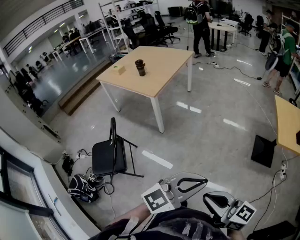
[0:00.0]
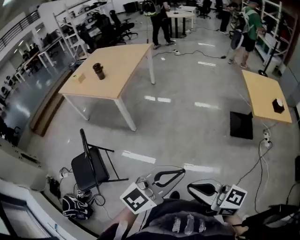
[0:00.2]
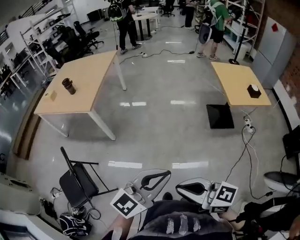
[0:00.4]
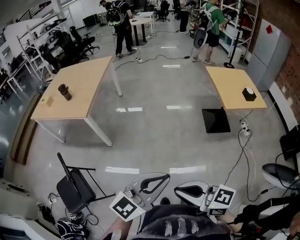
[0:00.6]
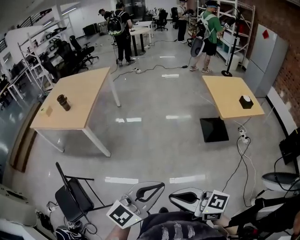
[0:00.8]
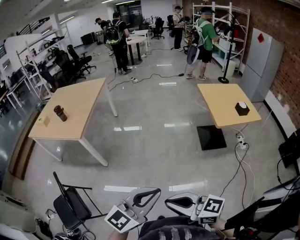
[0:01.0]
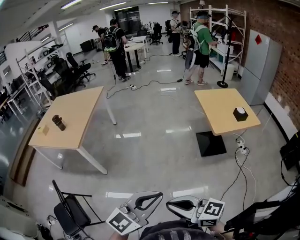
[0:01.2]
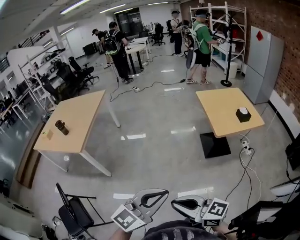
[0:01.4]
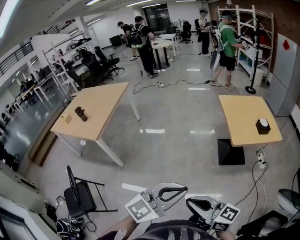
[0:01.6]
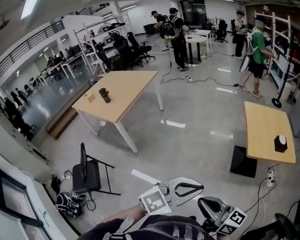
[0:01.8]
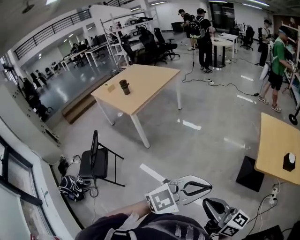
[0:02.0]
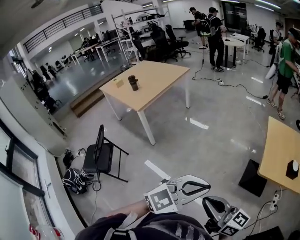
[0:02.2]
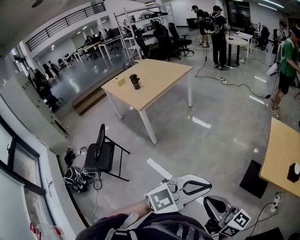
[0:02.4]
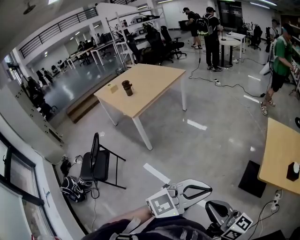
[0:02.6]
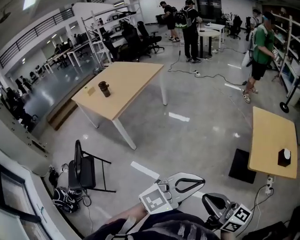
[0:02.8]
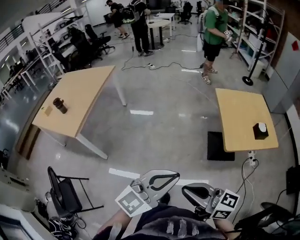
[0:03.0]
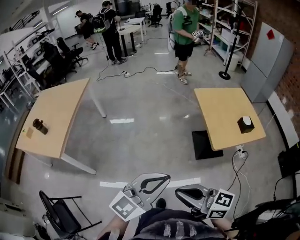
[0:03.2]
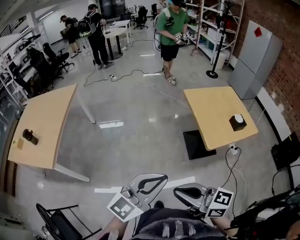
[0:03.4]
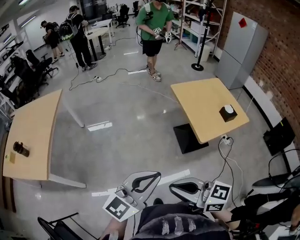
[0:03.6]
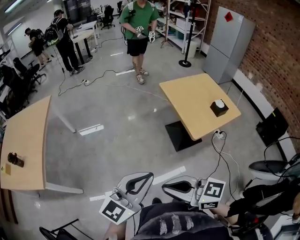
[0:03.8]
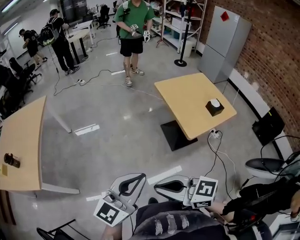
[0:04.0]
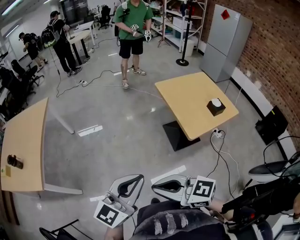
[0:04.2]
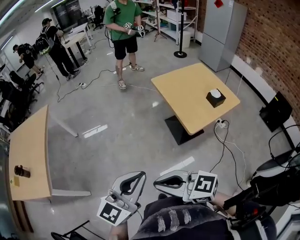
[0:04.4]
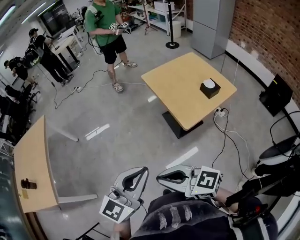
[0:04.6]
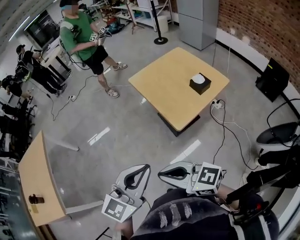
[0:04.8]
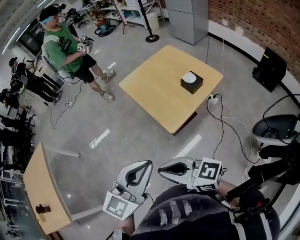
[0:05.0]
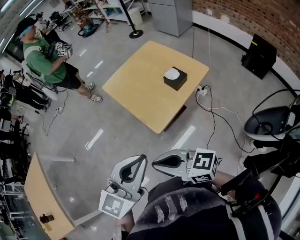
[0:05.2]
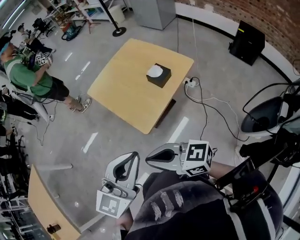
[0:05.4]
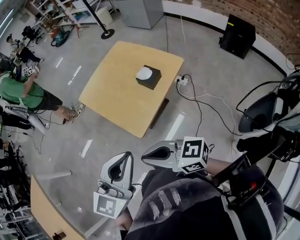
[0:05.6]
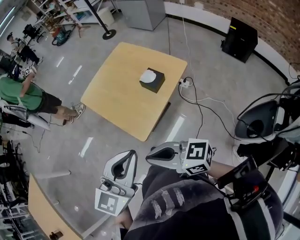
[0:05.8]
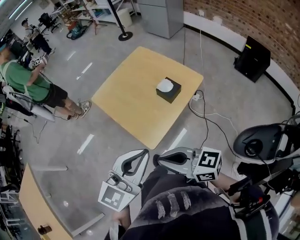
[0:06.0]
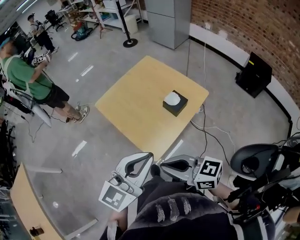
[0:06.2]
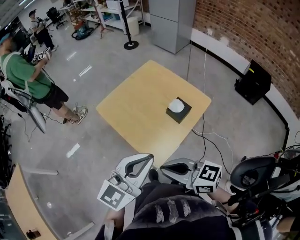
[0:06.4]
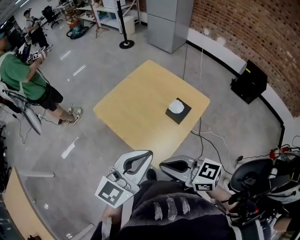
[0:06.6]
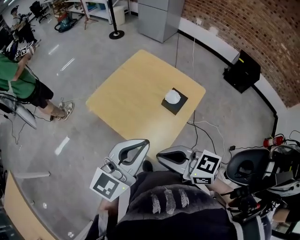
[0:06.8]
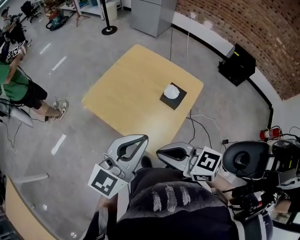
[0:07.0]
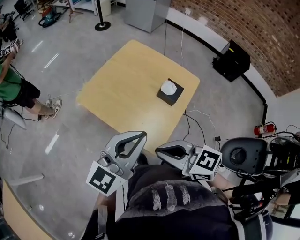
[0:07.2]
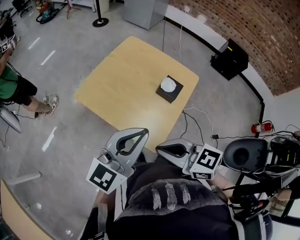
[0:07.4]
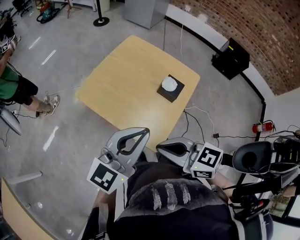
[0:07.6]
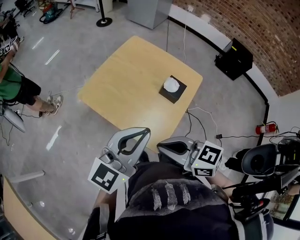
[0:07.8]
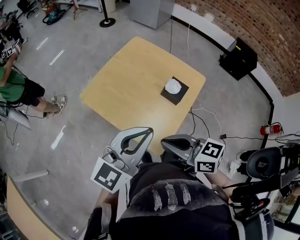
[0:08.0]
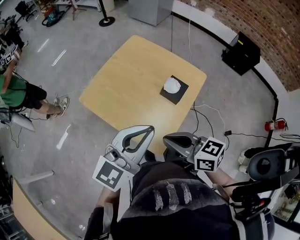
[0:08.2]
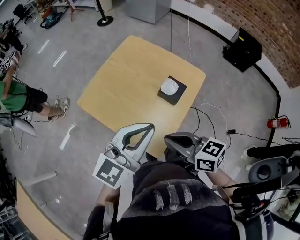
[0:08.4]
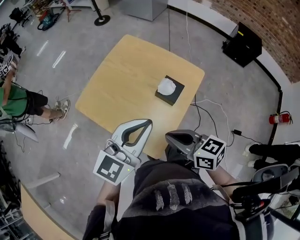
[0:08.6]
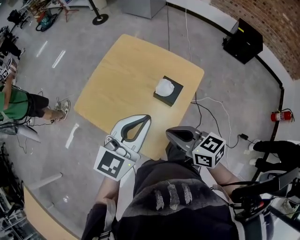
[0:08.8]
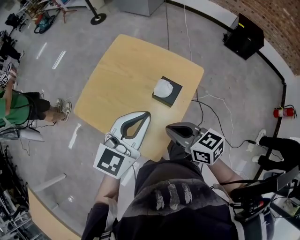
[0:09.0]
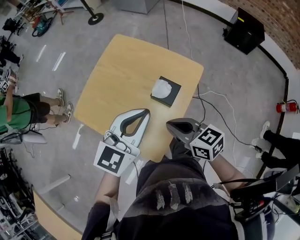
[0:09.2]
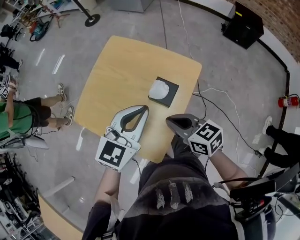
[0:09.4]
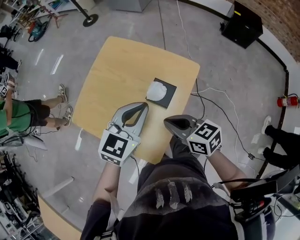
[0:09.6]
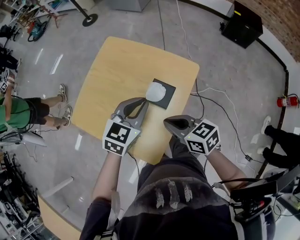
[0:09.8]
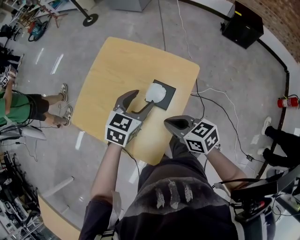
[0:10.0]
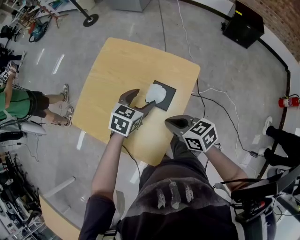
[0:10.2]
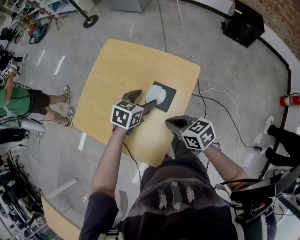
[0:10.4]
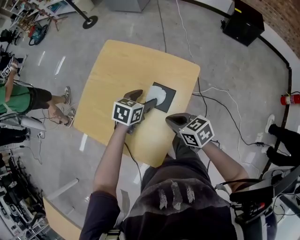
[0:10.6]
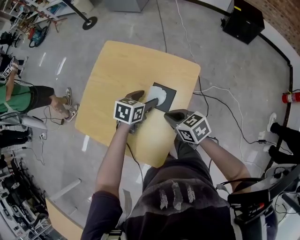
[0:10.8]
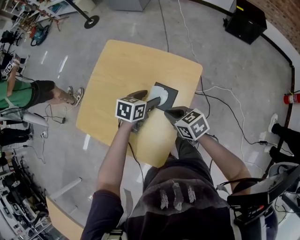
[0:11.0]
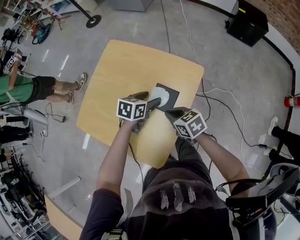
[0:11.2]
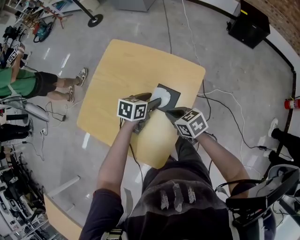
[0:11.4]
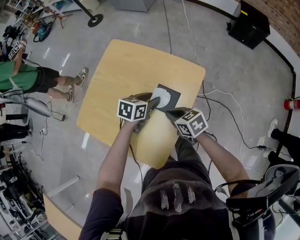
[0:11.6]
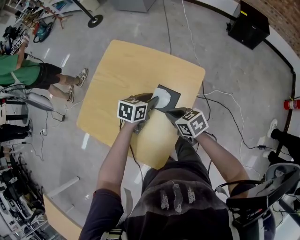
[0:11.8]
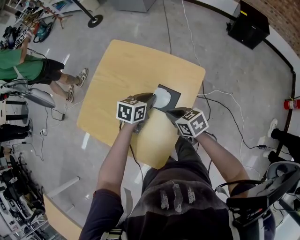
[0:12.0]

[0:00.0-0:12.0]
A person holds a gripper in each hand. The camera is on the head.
0:00.0 to 0:01.6: Both grippers travel together to the right and forward, about 25 cm.
0:01.6 to 0:03.0: Both grippers move forward, approximately 20 cm.
0:03.0 to 0:04.4: The two grippers go about 10 cm forward.
0:04.4 to 0:06.0: The left gripper shifts by some 40 cm, and swivels about 30 degrees. The right gripper moves some 40 cm, and rotates about 30 degrees.
0:06.0 to 0:07.6: The two grippers go about 20 cm forward and to the left. The right gripper swivels about 20 degrees.
0:07.6 to 0:09.0: The right gripper travels to the right, forward and downward by about 20 cm. The left gripper moves to the right and forward, approximately 20 cm.
0:09.0 to 0:10.4: The right gripper is displaced downward and forward by roughly 10 cm; the left gripper heads downward and forward, covering roughly 25 cm, angles its fingers downward, by about 30 degrees, and opens up.
0:10.4 to 0:12.0: The right gripper is displaced downward and forward by some 5 cm. The left gripper closes its fingers.

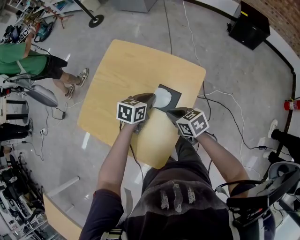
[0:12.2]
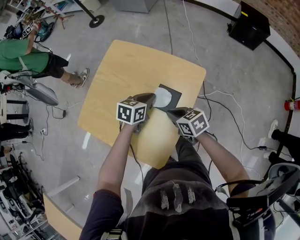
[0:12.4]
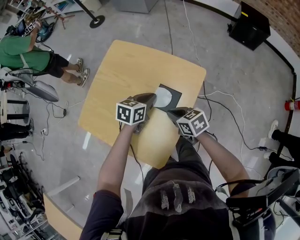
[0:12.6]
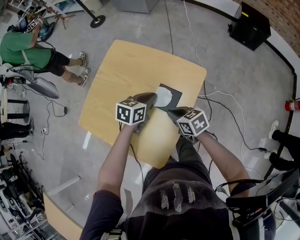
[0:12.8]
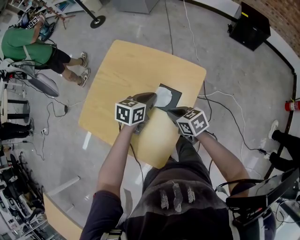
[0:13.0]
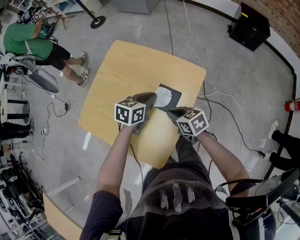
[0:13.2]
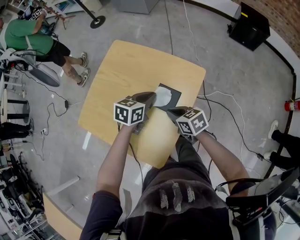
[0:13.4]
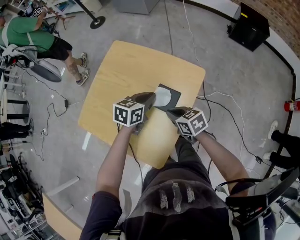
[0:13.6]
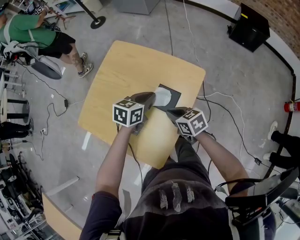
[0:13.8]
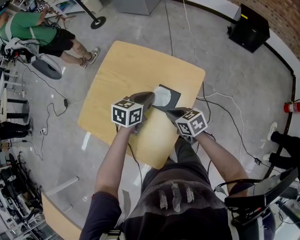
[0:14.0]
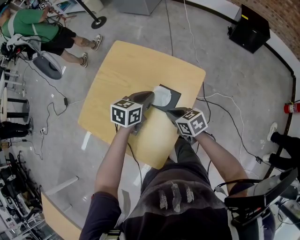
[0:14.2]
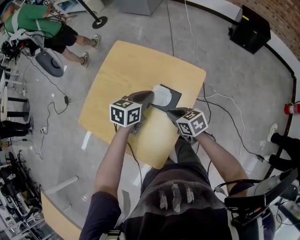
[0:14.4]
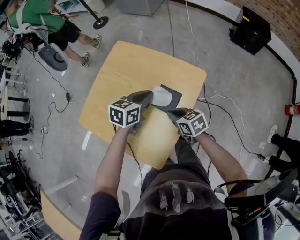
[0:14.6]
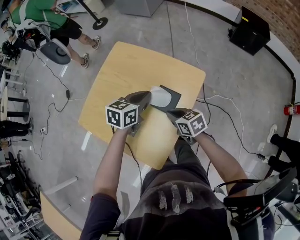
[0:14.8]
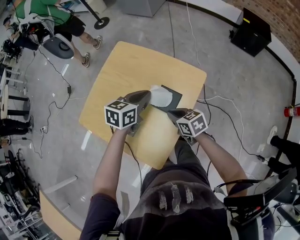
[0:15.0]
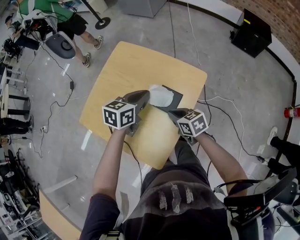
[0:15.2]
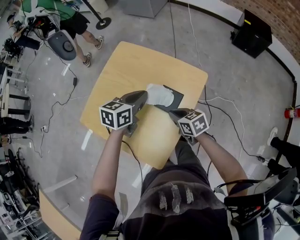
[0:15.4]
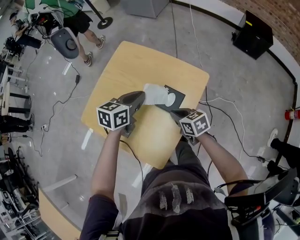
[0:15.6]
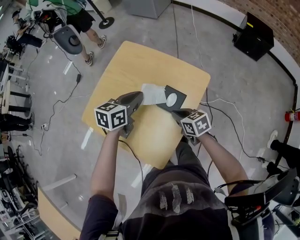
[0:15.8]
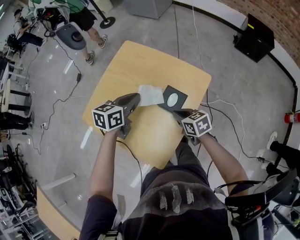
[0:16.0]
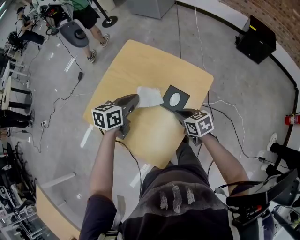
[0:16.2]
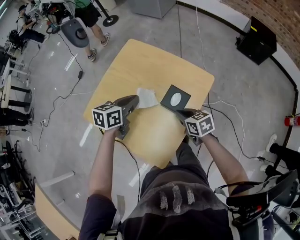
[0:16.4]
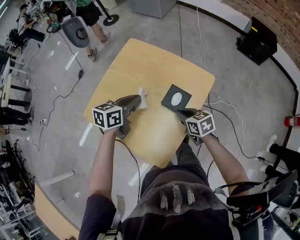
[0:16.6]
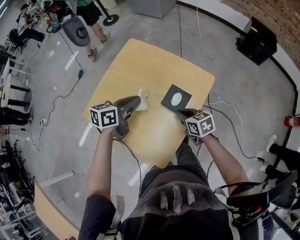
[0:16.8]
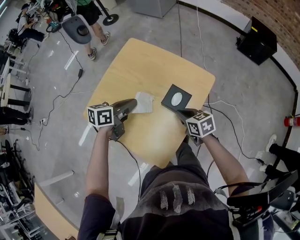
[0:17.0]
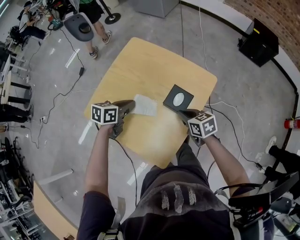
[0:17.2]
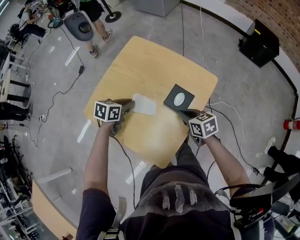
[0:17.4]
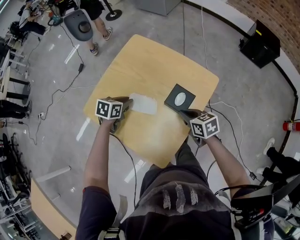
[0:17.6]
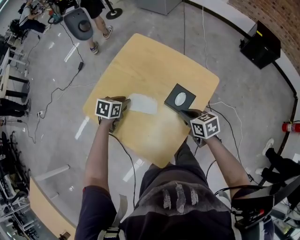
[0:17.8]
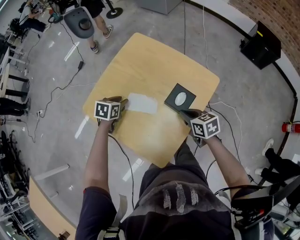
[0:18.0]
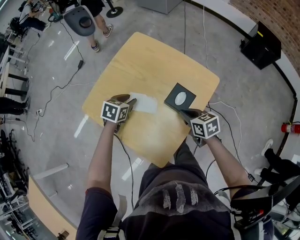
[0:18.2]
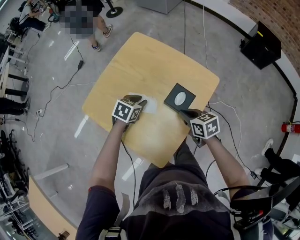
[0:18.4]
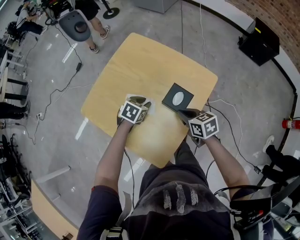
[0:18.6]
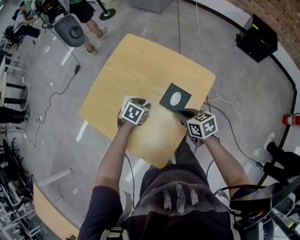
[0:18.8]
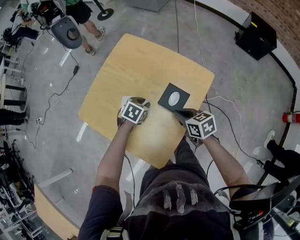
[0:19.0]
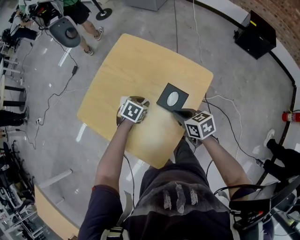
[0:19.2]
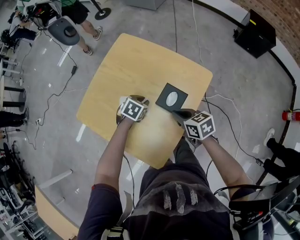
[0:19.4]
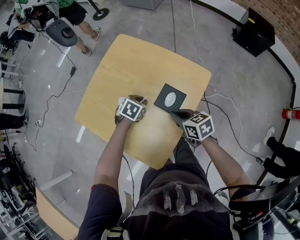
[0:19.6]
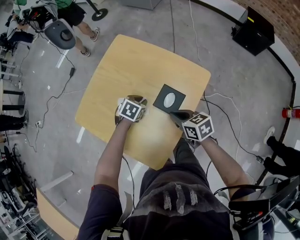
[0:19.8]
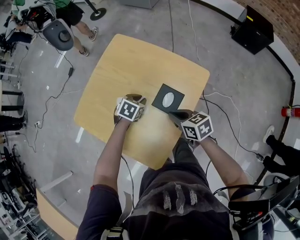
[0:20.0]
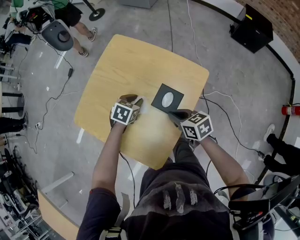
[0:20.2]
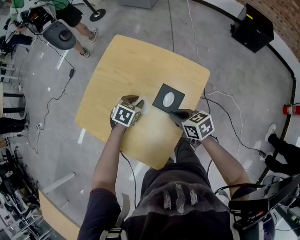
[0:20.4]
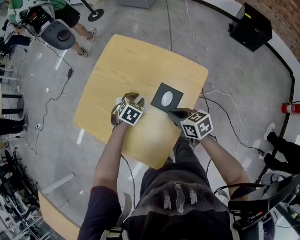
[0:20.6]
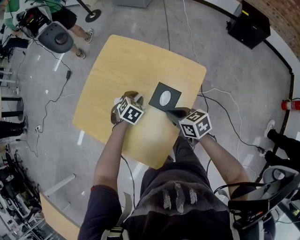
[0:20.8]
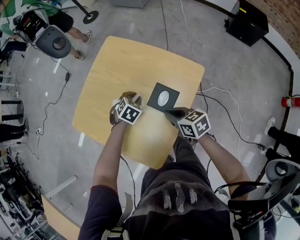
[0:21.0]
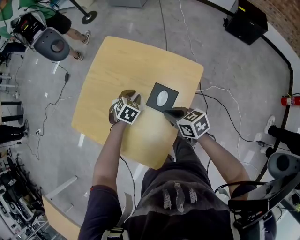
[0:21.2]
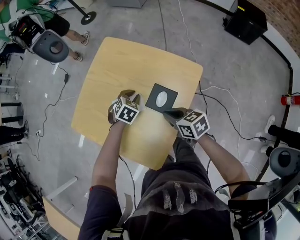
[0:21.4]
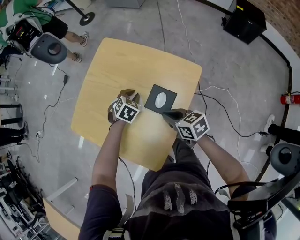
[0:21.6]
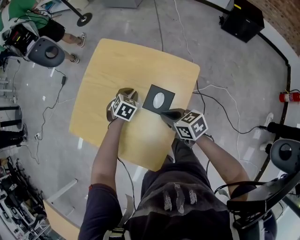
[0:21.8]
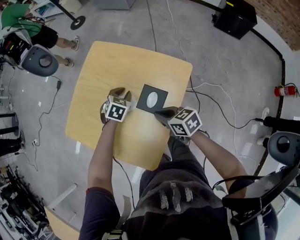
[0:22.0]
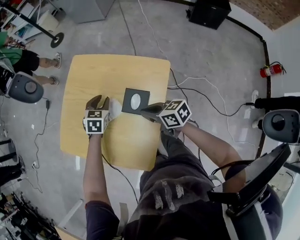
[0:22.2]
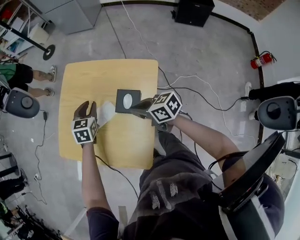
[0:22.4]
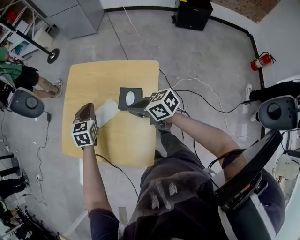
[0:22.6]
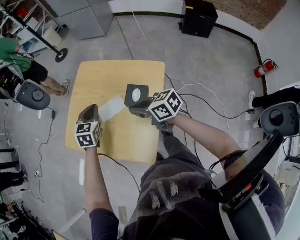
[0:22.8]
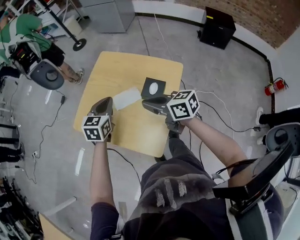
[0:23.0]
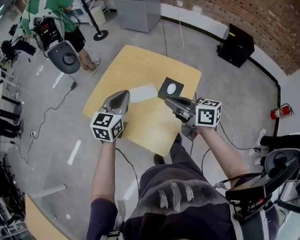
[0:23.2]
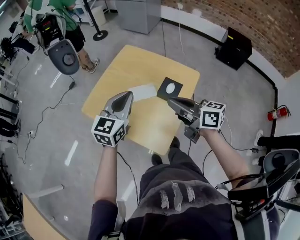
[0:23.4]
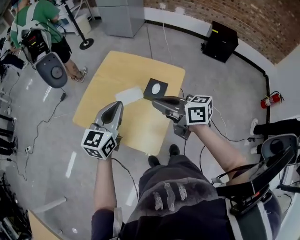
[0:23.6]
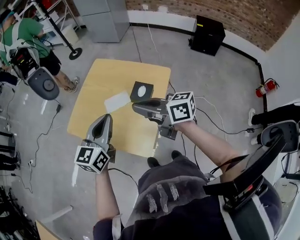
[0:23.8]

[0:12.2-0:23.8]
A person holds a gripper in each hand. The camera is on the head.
0:12.2 to 0:13.6: There are only small adjustments of the grippers.
0:13.6 to 0:15.0: The left gripper travels upward by some 5 cm.
0:15.0 to 0:16.6: The left gripper travels to the left by roughly 10 cm.
0:16.6 to 0:18.0: The left gripper travels to the left and downward by about 20 cm, swivels approximately 30 degrees, and opens its fingers.
0:18.0 to 0:19.4: The left gripper moves to the right, roughly 15 cm, and turns by roughly 20 degrees.
0:19.4 to 0:21.0: The grippers stay close to where they were, moving slightly.
0:21.0 to 0:22.4: The right gripper travels upward by approximately 5 cm, while the left gripper travels upward by roughly 10 cm, and rotates approximately 30 degrees.
0:22.4 to 0:23.8: The left gripper travels backward and upward by roughly 30 cm, tips its fingers upward by about 30 degrees, and closes up. Meanwhile the right gripper travels upward and backward by approximately 20 cm, and changes its angle by some 20 degrees.
